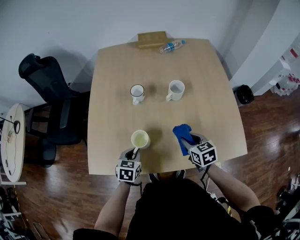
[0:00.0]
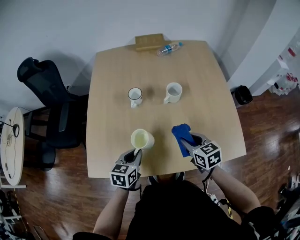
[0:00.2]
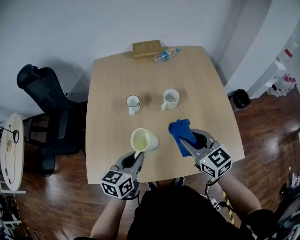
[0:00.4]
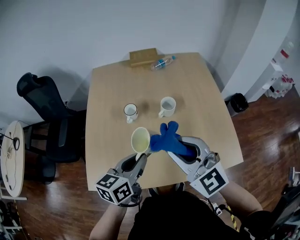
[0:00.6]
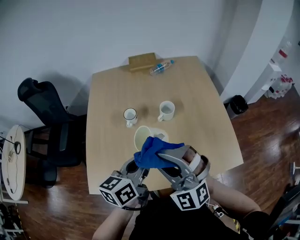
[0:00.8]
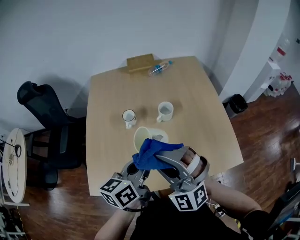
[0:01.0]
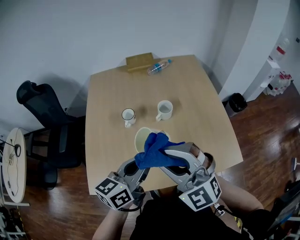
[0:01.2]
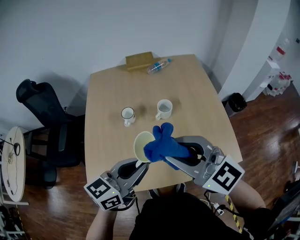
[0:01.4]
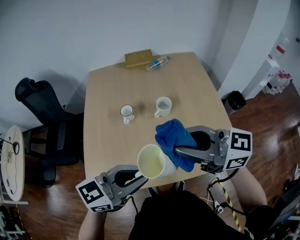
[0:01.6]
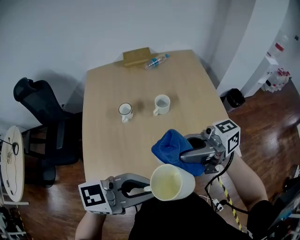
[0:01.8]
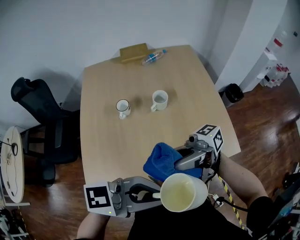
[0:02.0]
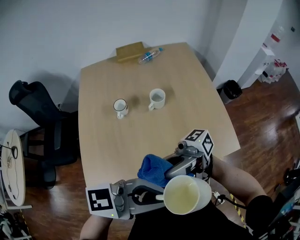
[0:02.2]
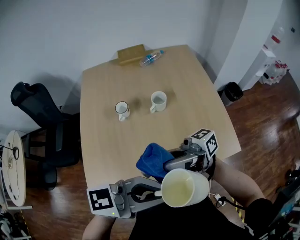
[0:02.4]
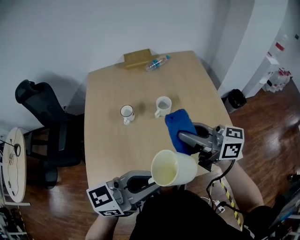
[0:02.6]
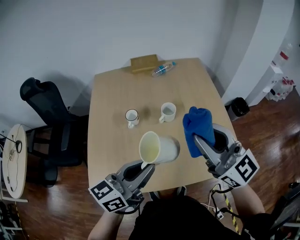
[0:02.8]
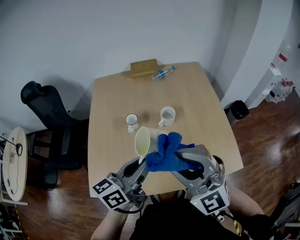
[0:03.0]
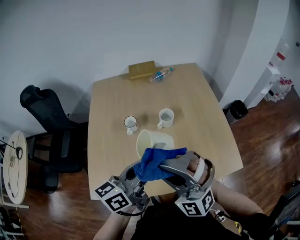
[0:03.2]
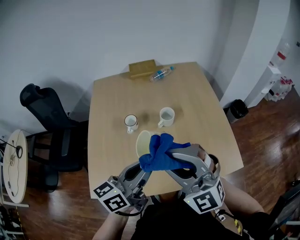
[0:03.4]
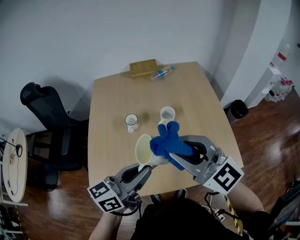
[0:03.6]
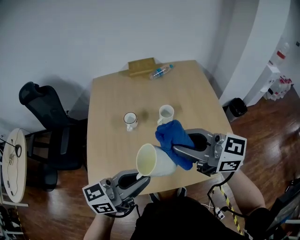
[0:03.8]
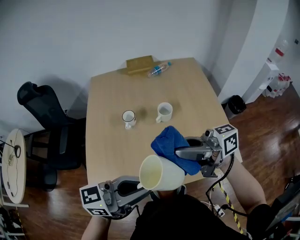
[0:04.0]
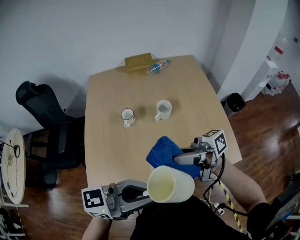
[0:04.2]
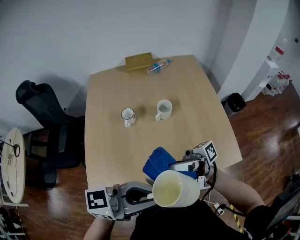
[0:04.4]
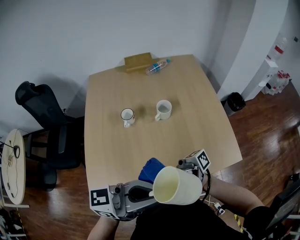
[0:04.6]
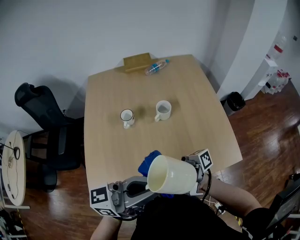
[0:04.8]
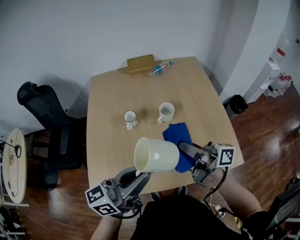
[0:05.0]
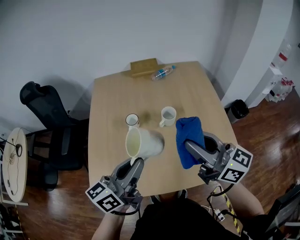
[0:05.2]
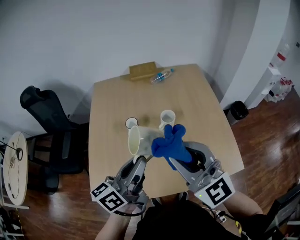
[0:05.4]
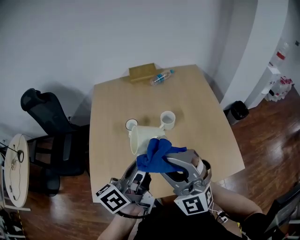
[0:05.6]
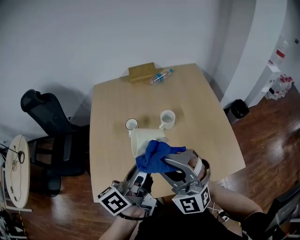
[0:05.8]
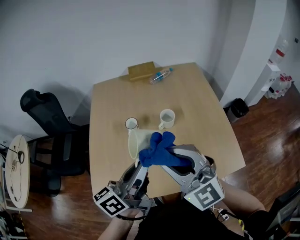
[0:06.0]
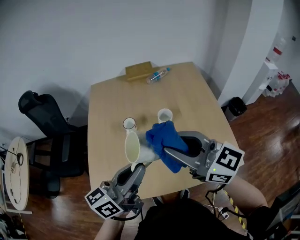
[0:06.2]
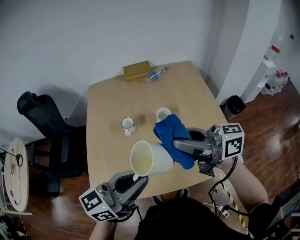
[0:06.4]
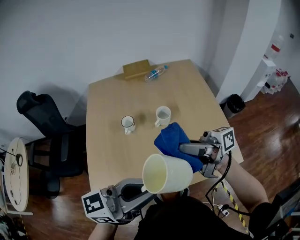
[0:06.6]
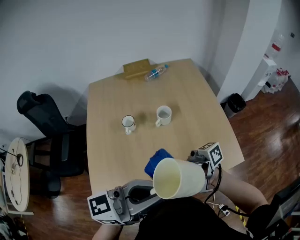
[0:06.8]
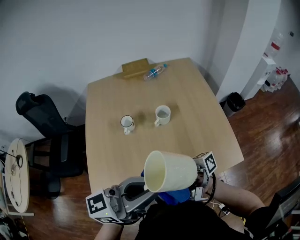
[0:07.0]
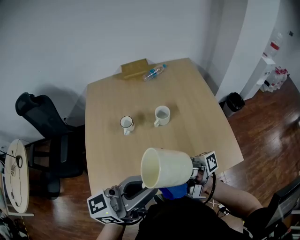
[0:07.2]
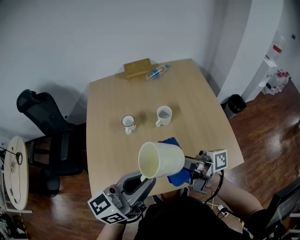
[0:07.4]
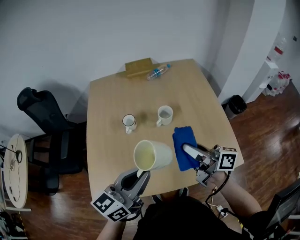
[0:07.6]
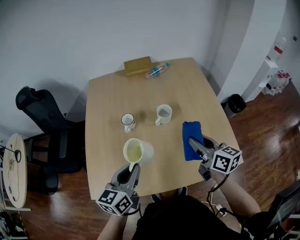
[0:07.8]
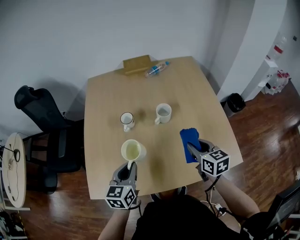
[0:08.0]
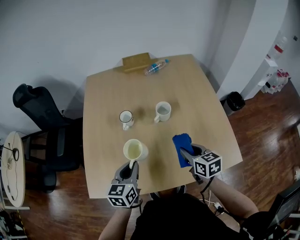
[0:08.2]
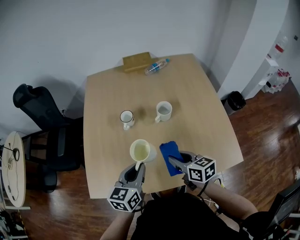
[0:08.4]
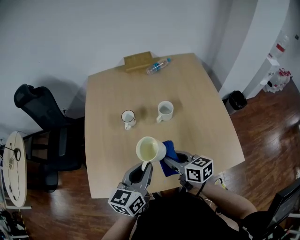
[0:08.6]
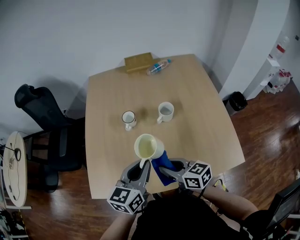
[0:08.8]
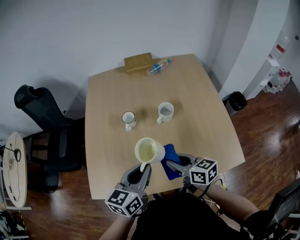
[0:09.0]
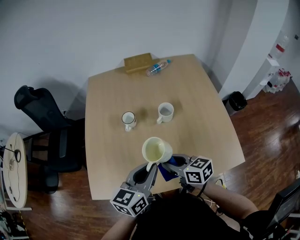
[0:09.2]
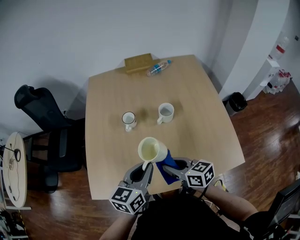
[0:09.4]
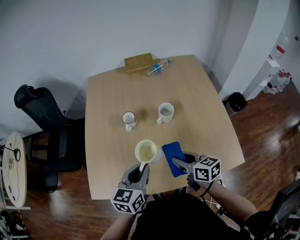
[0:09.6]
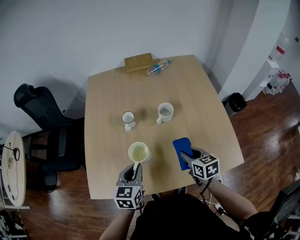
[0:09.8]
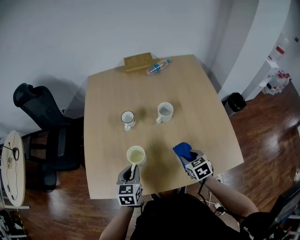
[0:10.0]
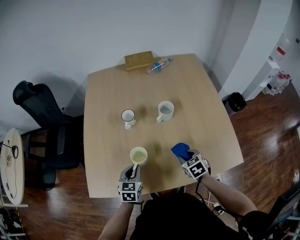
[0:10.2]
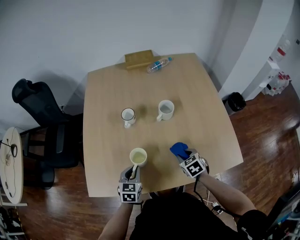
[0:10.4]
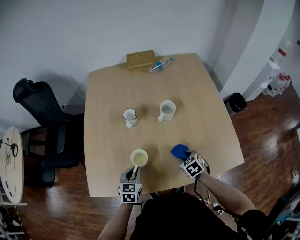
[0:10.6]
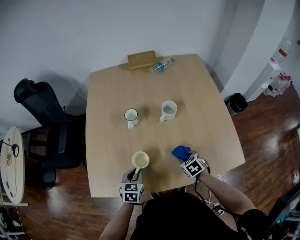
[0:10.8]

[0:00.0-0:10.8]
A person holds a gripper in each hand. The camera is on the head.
0:00.0 to 0:01.6: The two grippers go some 35 cm upward. The right gripper angles its fingers upward, by about 40 degrees, while the left gripper points its fingers some 40 degrees further upward.
0:01.6 to 0:03.0: The right gripper rolls counterclockwise, seen from behind, by roughly 50 degrees, while the left gripper moves approximately 10 cm, and turns by roughly 30 degrees.
0:03.0 to 0:04.6: The left gripper shifts by some 15 cm, and swivels about 40 degrees. The right gripper goes roughly 10 cm downward, and twists some 120 degrees clockwise, seen from behind.
0:04.6 to 0:06.2: The right gripper goes up and down, roughly 10 cm each way, reversing 2 times, and twists approximately 80 degrees counterclockwise, seen from behind. The left gripper changes place by about 10 cm, and changes its angle by approximately 40 degrees.
0:06.2 to 0:07.8: The grippers both shift downward by about 15 cm. The right gripper turns by roughly 40 degrees. The left gripper turns by some 30 degrees.
0:07.8 to 0:09.2: The right gripper travels to the left and downward by approximately 15 cm, and turns by about 20 degrees; the left gripper goes some 5 cm to the right, and goes downward and returns, approximately 10 cm each way.
0:09.2 to 0:10.8: The left gripper travels downward and to the left by about 25 cm, and changes its angle by roughly 30 degrees. Meanwhile the right gripper shifts approximately 20 cm downward and to the right, and tilts its fingers about 40 degrees downward.

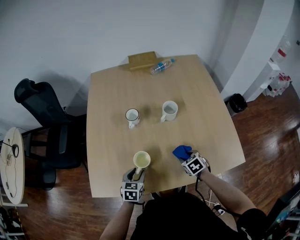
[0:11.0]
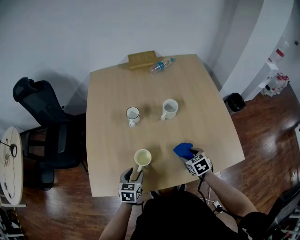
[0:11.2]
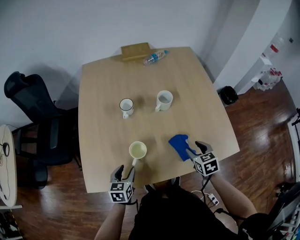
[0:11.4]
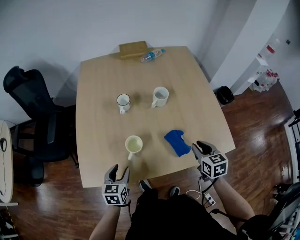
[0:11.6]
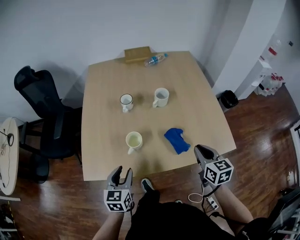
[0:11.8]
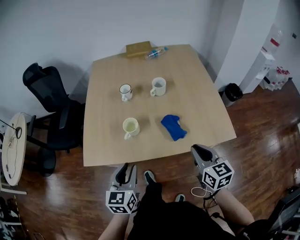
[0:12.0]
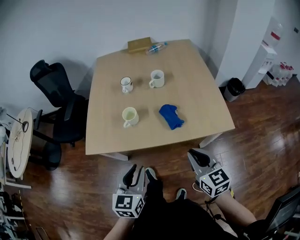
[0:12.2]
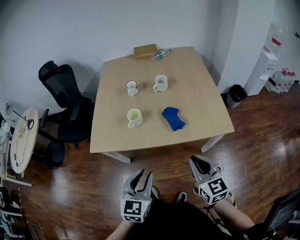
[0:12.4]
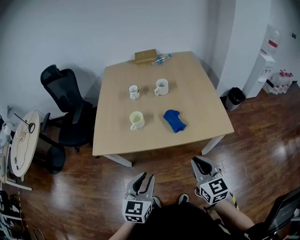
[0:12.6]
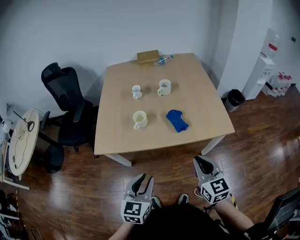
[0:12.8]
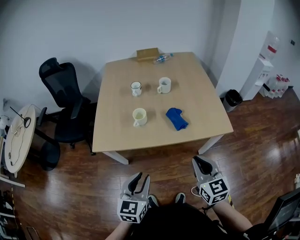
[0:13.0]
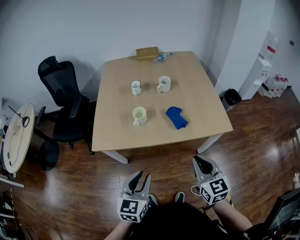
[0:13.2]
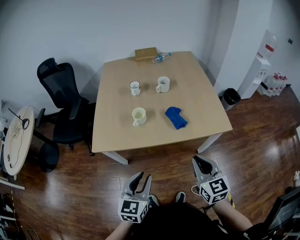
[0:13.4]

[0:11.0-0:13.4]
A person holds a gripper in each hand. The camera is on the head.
0:11.0 to 0:12.2: The grippers both shift backward and upward by approximately 35 cm. The right gripper angles its fingers upward, by roughly 40 degrees, and closes its fingers, while the left gripper changes its angle by some 30 degrees.
0:12.2 to 0:13.4: Both grippers travel together backward, roughly 5 cm.

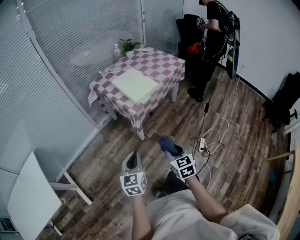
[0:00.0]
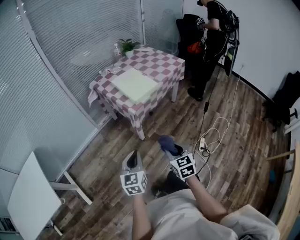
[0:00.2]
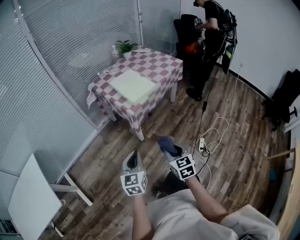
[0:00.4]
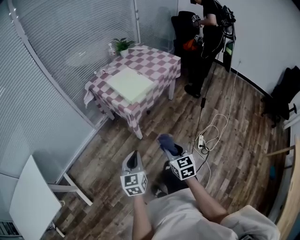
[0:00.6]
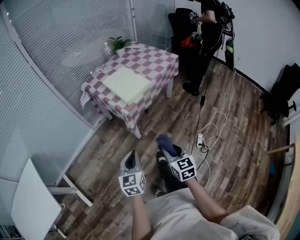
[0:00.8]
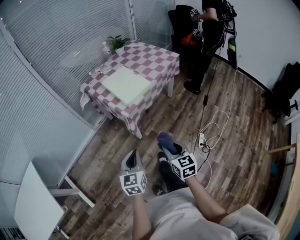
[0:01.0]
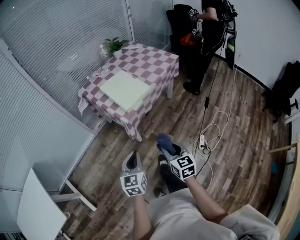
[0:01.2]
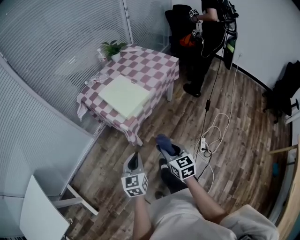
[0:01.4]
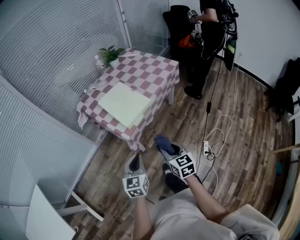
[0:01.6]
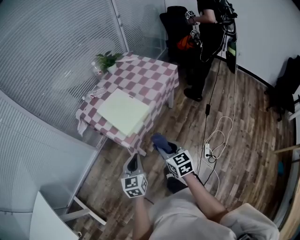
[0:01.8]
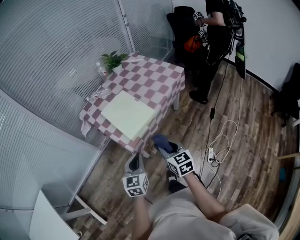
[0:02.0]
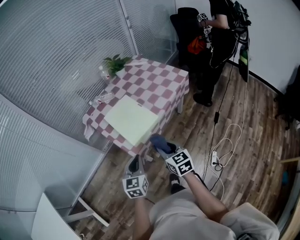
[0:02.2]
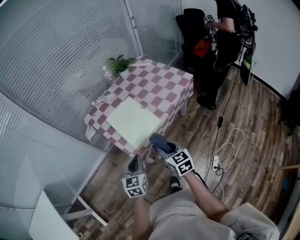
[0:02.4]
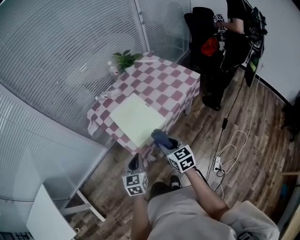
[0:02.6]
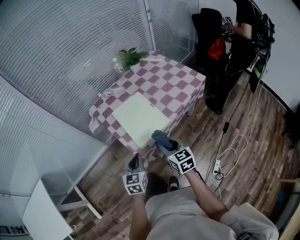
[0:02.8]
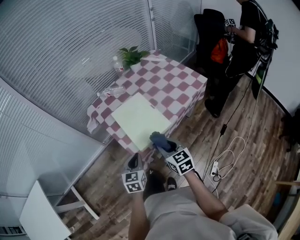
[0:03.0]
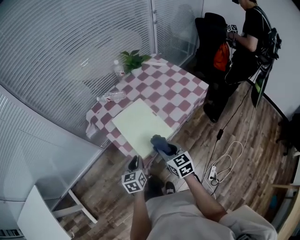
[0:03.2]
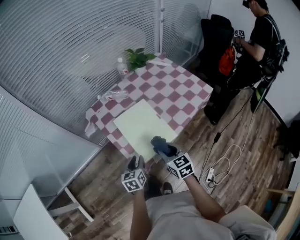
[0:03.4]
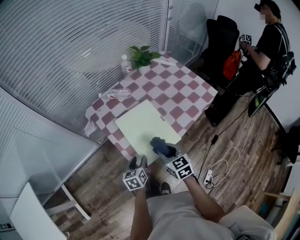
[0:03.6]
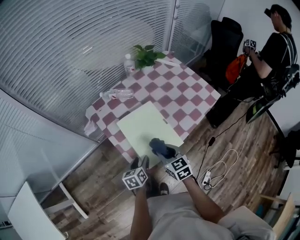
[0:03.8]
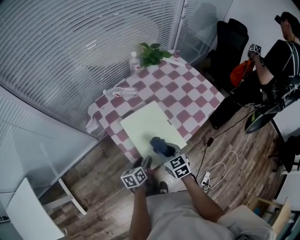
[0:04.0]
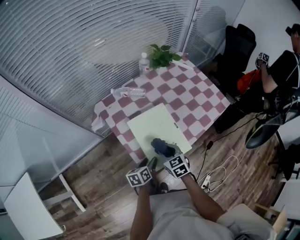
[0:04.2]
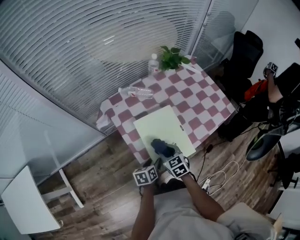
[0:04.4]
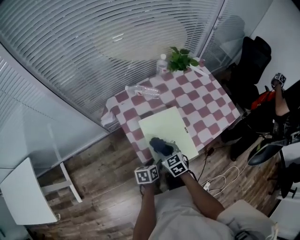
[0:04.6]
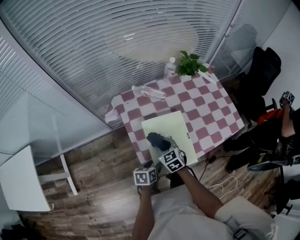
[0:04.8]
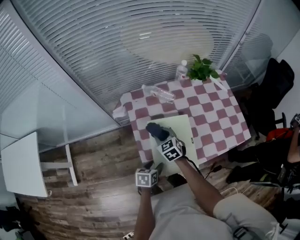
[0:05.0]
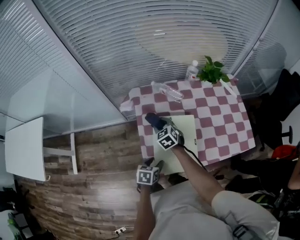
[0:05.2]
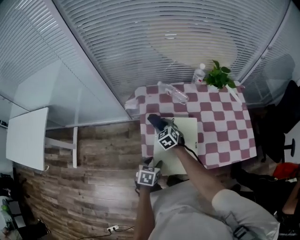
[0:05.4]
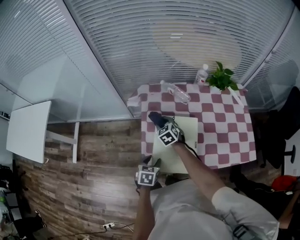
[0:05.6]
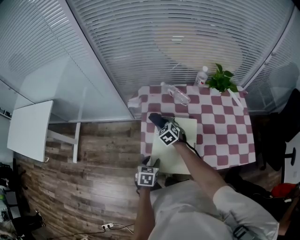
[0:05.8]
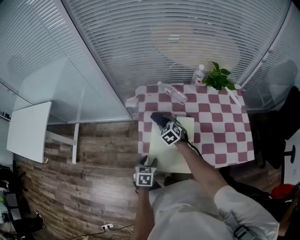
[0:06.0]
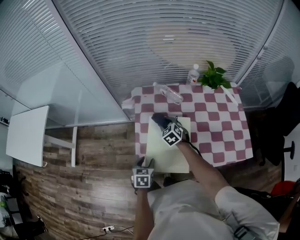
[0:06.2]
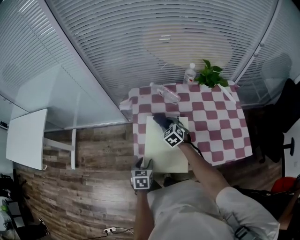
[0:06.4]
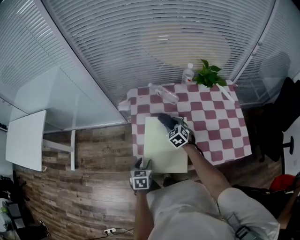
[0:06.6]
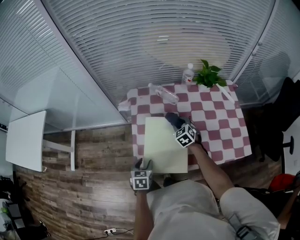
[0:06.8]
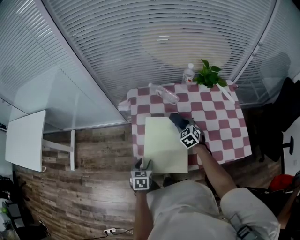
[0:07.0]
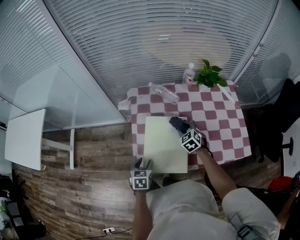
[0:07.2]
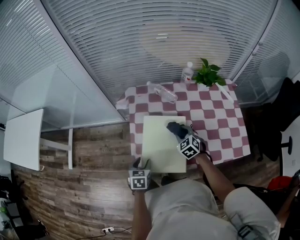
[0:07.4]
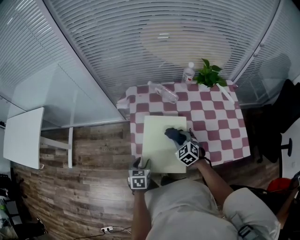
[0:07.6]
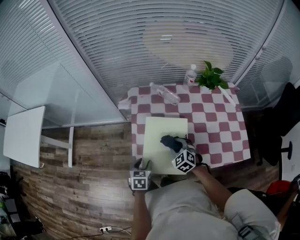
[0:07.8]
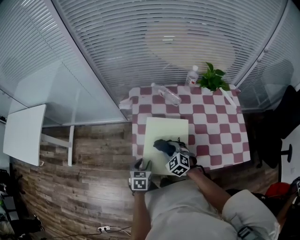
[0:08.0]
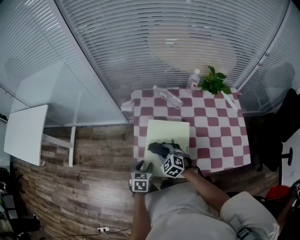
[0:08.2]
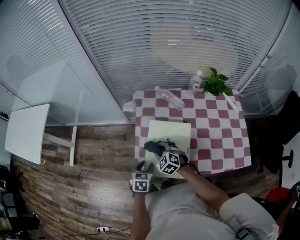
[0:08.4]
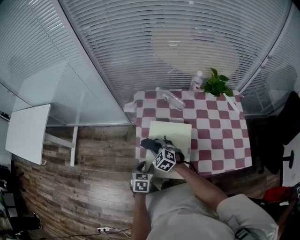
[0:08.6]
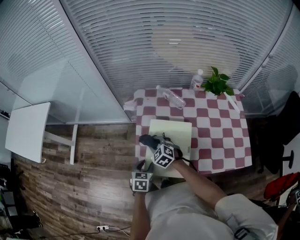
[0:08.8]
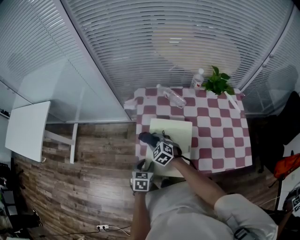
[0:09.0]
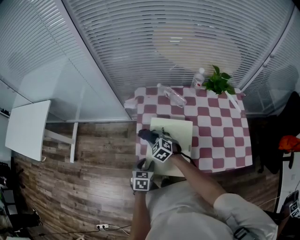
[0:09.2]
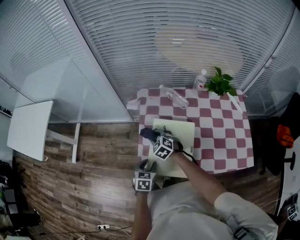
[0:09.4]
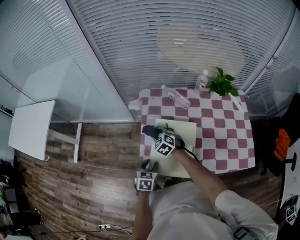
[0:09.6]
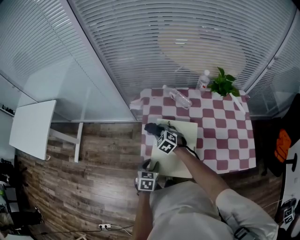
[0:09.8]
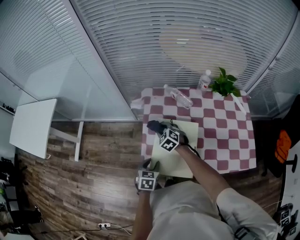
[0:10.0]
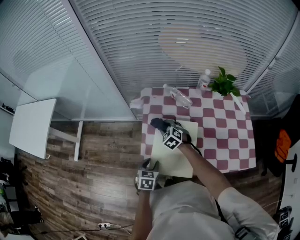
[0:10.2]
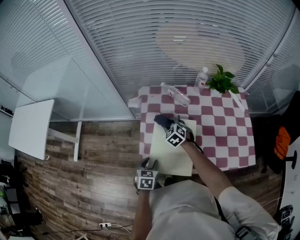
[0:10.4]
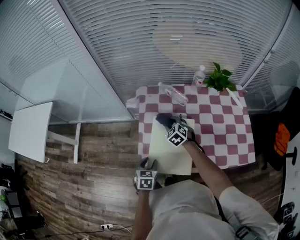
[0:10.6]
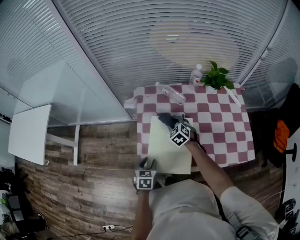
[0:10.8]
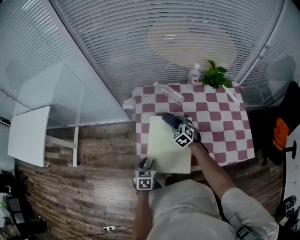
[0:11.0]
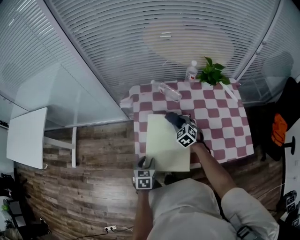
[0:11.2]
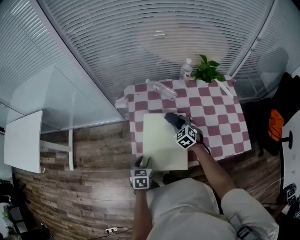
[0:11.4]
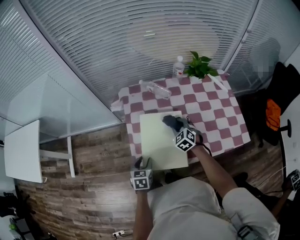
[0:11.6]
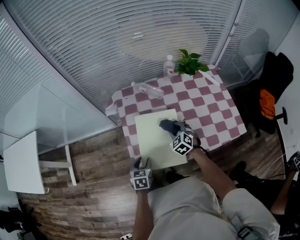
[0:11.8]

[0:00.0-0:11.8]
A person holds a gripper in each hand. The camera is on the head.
0:00.0 to 0:01.4: The left gripper heads forward and to the right, covering some 15 cm. The right gripper moves forward, some 15 cm.
0:01.4 to 0:03.0: The two grippers go about 25 cm forward.
0:03.0 to 0:04.4: The left gripper goes approximately 15 cm forward and downward, changes its angle by approximately 40 degrees, and opens up. The right gripper moves forward, to the left and downward, some 20 cm, and rotates approximately 20 degrees.
0:04.4 to 0:06.0: The right gripper moves about 15 cm, and turns by approximately 40 degrees. The left gripper rotates some 40 degrees.
0:06.0 to 0:07.4: The right gripper heads to the right and backward, covering approximately 15 cm.
0:07.4 to 0:08.8: The right gripper goes about 20 cm to the left, and changes its angle by approximately 20 degrees.
0:08.8 to 0:10.4: The right gripper moves forward and to the right, about 10 cm.
0:10.4 to 0:11.8: The right gripper moves to the right and backward, roughly 15 cm.
